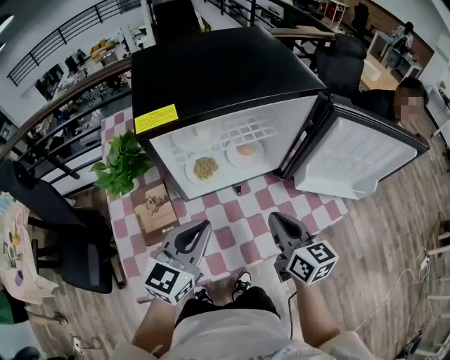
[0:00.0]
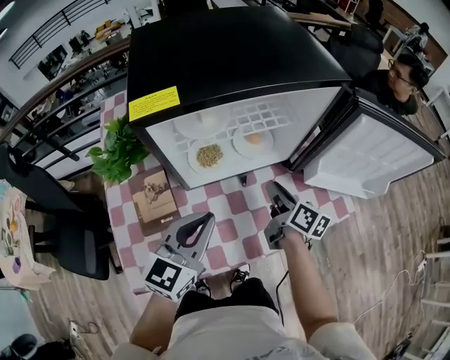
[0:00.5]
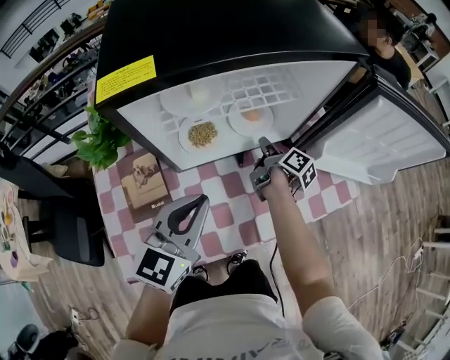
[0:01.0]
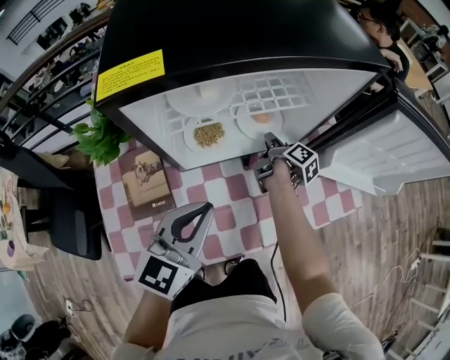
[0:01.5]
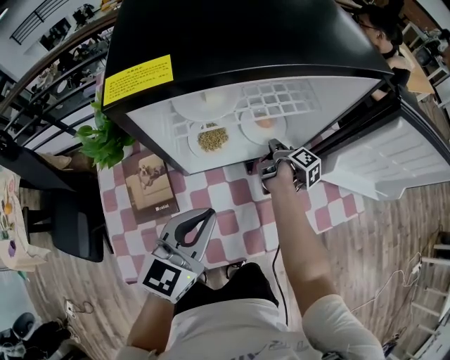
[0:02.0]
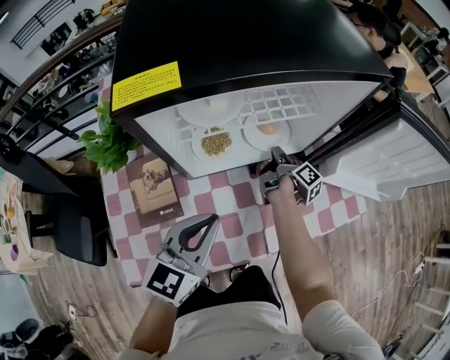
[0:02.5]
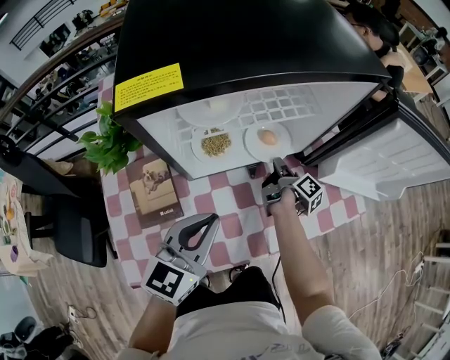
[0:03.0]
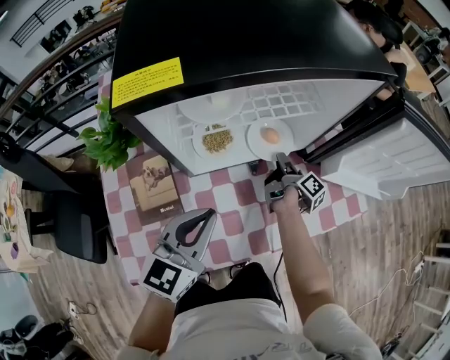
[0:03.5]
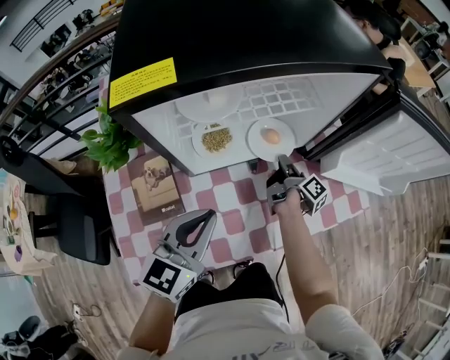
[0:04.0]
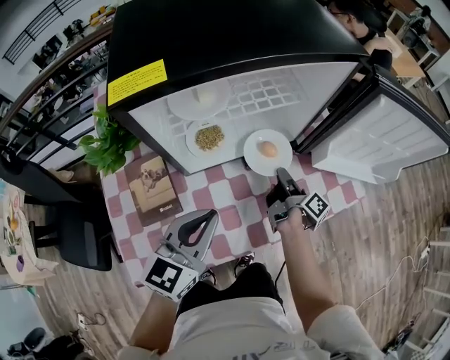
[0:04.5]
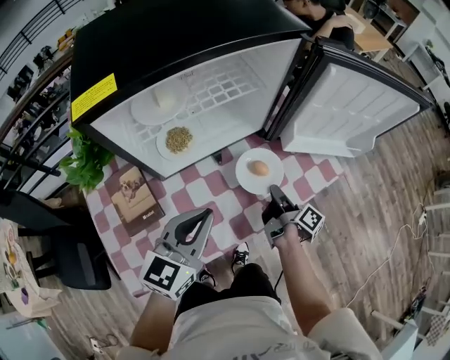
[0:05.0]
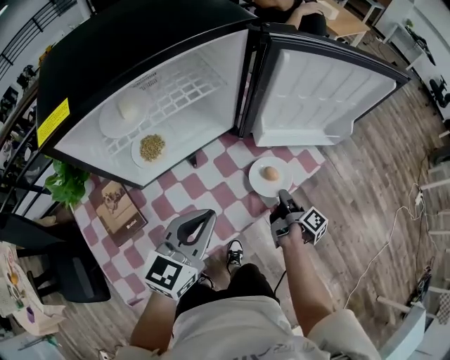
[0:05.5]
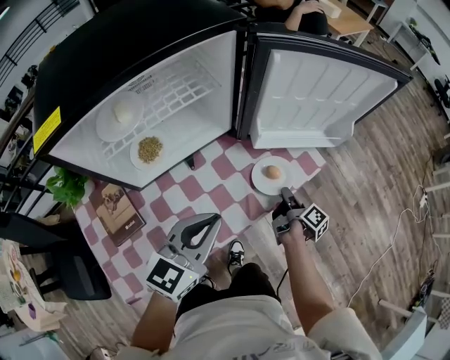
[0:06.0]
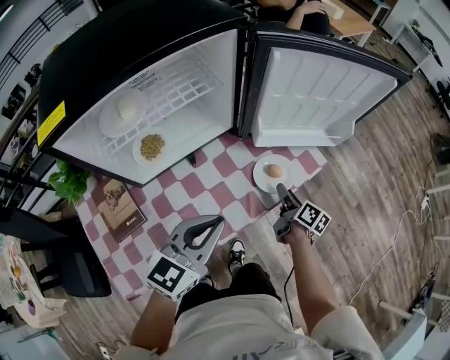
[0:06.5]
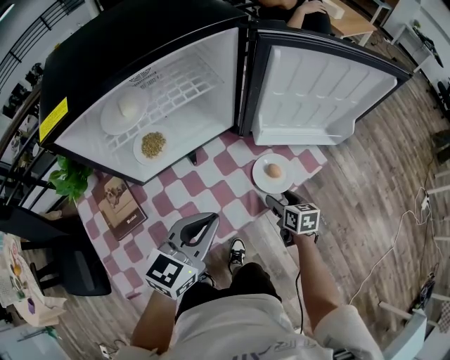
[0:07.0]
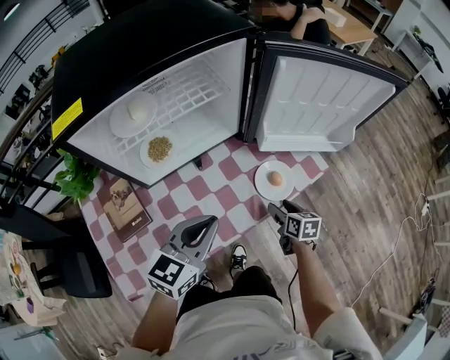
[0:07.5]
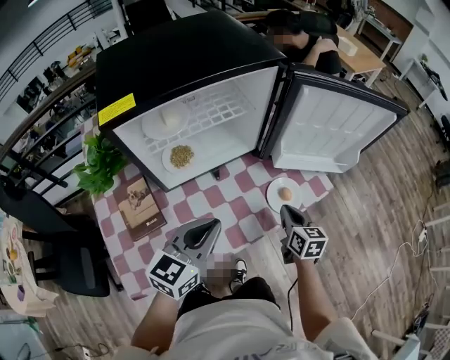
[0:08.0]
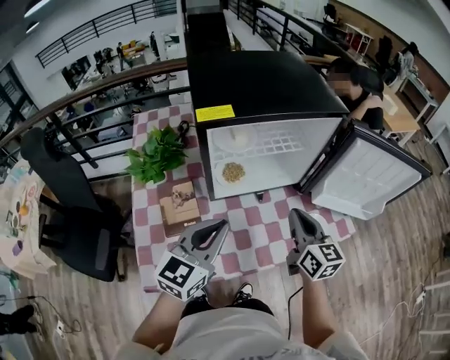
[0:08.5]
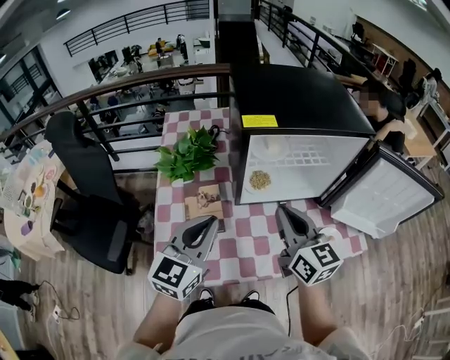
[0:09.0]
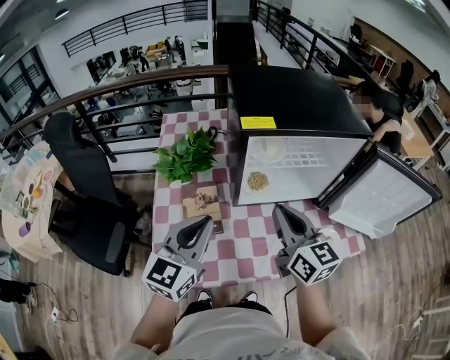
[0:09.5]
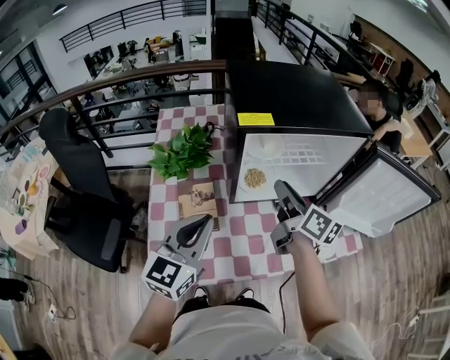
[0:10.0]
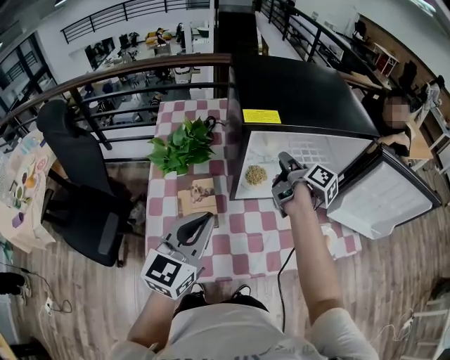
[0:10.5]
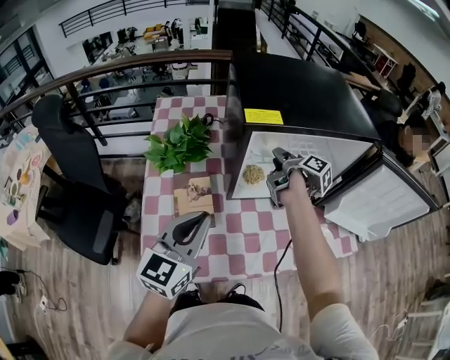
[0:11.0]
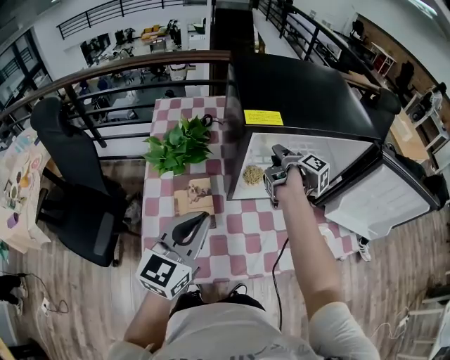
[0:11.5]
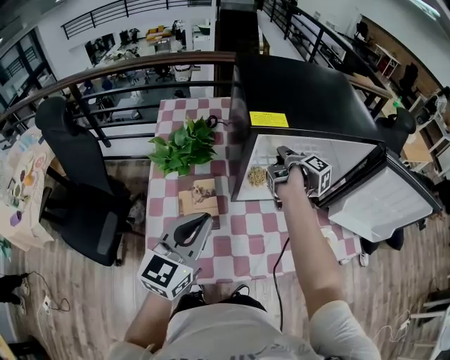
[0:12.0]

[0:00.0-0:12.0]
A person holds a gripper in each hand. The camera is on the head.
0:00.0 to 0:02.0: The left gripper changes place by about 5 cm. Meanwhile the right gripper goes approximately 30 cm forward and downward, and rolls clockwise, seen from behind, by approximately 70 degrees.
0:02.0 to 0:04.0: The right gripper goes approximately 5 cm backward.
0:04.0 to 0:06.0: The left gripper travels to the right by some 15 cm, and turns by roughly 20 degrees. Meanwhile the right gripper heads to the right and backward, covering approximately 30 cm.
0:06.0 to 0:08.0: The left gripper shifts about 5 cm to the left, while the right gripper is displaced upward and to the left by about 15 cm, twists some 70 degrees counterclockwise, seen from behind, and opens, then closes once more.
0:08.0 to 0:10.0: The left gripper moves approximately 20 cm, and turns by approximately 30 degrees, while the right gripper moves about 35 cm, and changes its angle by about 40 degrees.
0:10.0 to 0:12.0: The right gripper moves forward and downward, roughly 15 cm, and rolls clockwise, seen from behind, by roughly 40 degrees.

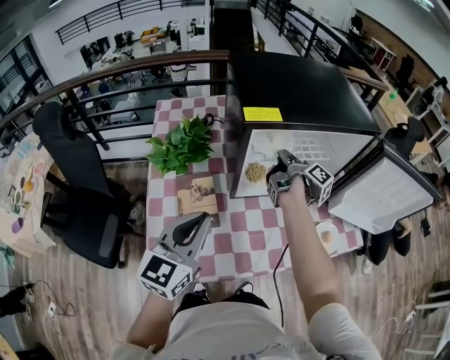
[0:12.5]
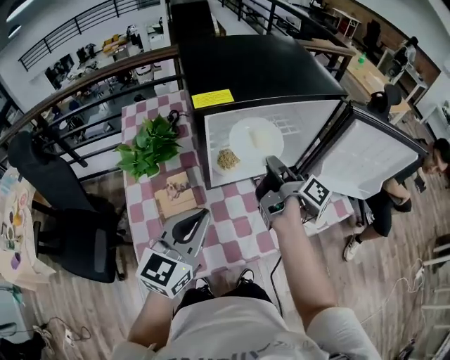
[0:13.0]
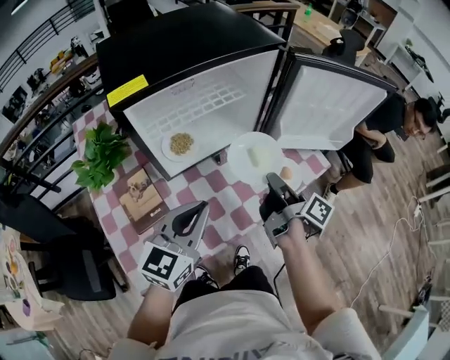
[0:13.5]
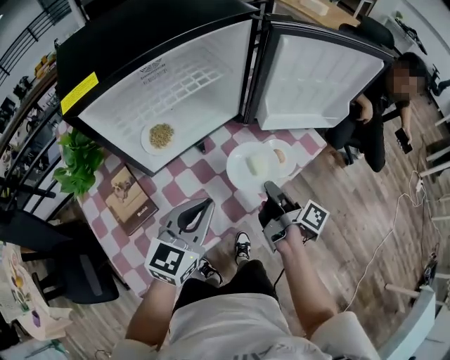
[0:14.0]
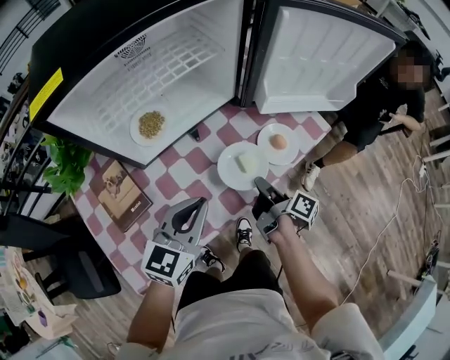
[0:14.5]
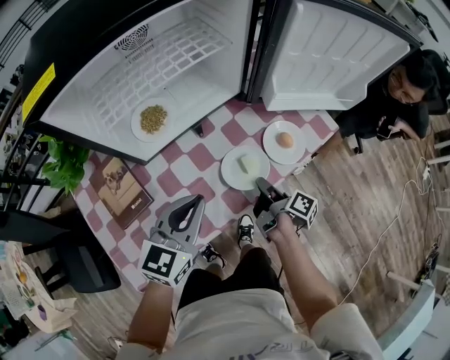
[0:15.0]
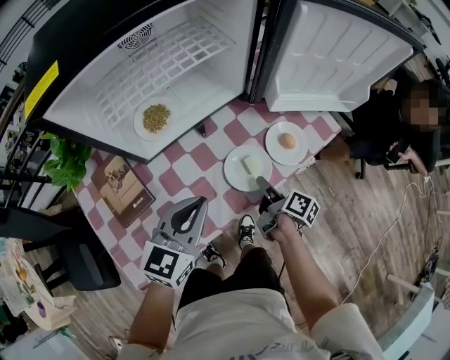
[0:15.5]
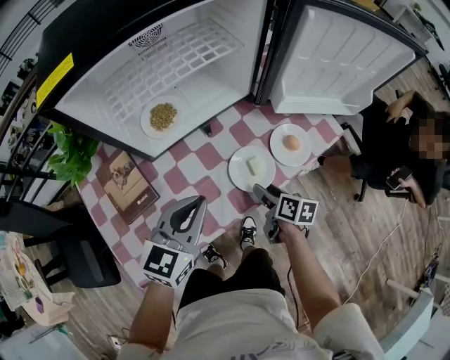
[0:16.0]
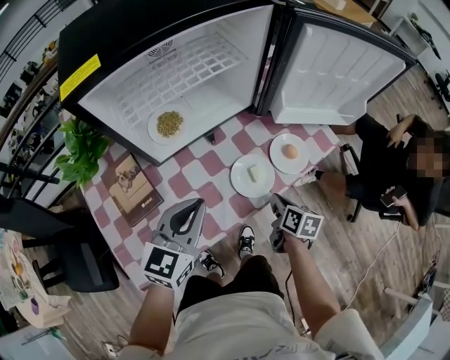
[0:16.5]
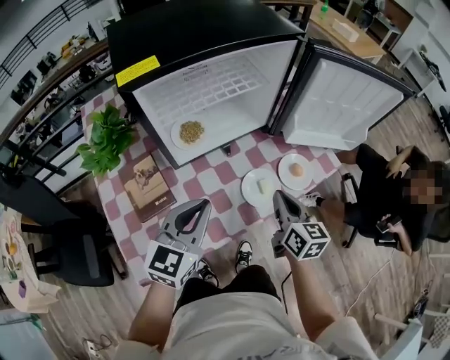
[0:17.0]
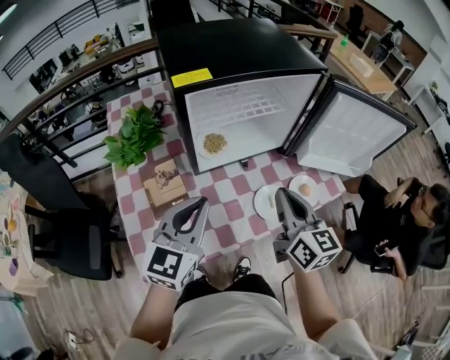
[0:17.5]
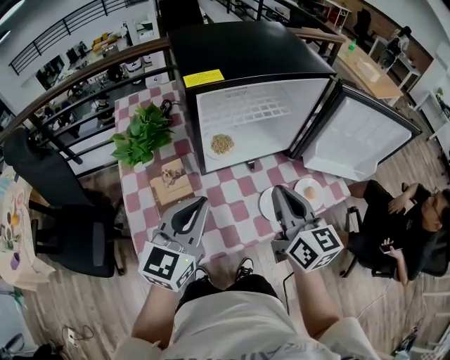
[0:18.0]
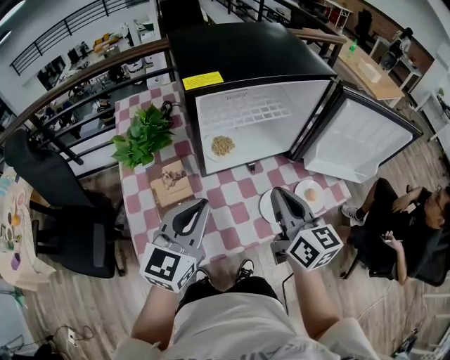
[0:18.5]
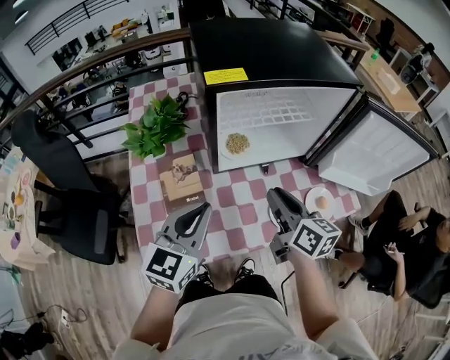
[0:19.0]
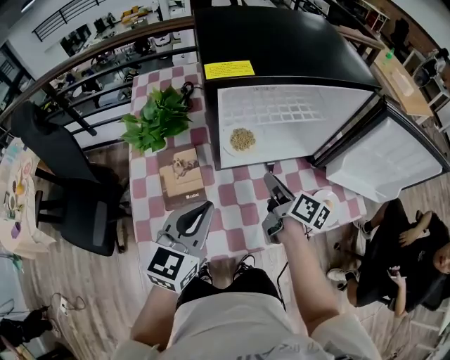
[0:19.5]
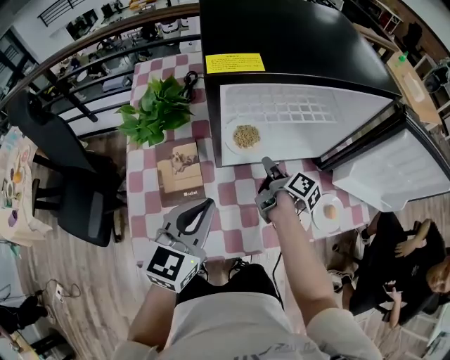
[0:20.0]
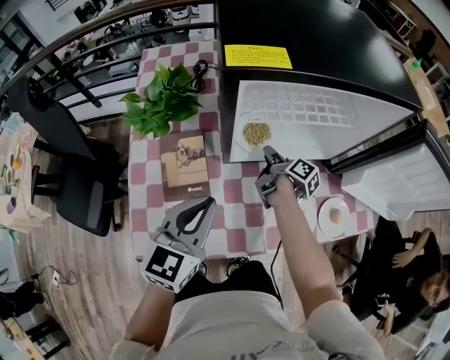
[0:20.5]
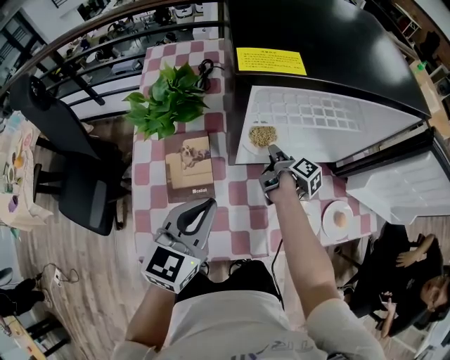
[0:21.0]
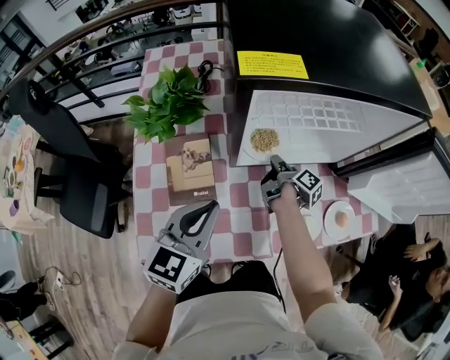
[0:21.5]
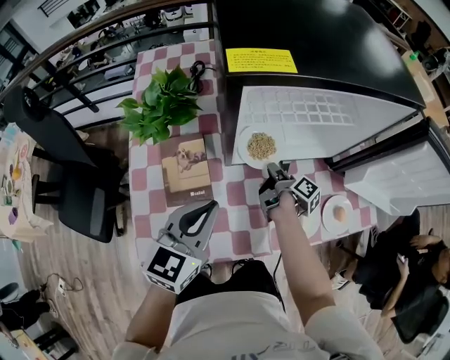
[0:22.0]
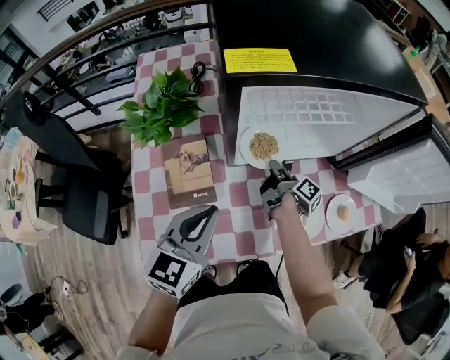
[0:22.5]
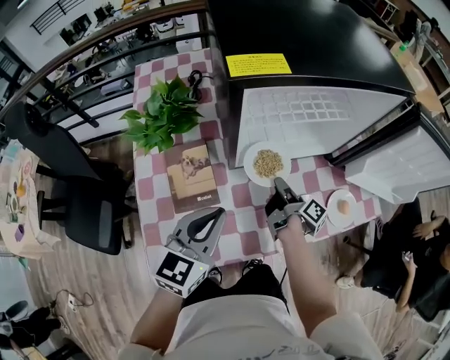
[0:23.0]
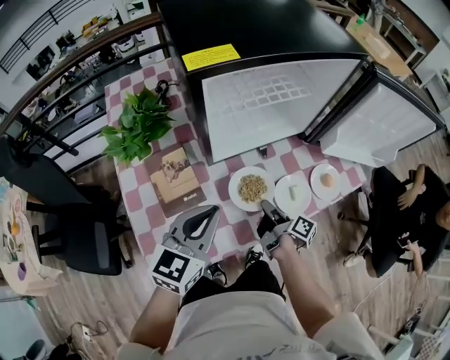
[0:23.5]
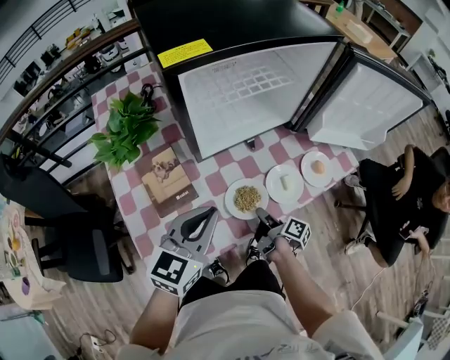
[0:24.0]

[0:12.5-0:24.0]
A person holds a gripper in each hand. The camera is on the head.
0:12.5 to 0:14.5: The left gripper is displaced to the right and downward by some 25 cm, and turns by roughly 30 degrees; the right gripper travels to the right, backward and downward by some 40 cm.
0:14.5 to 0:16.5: The right gripper twists some 40 degrees counterclockwise, seen from behind, and opens and closes again.
0:16.5 to 0:18.5: The left gripper moves upward and to the left, about 15 cm; the right gripper is displaced upward and to the left by roughly 35 cm, and angles its fingers upward, by roughly 40 degrees.
0:18.5 to 0:20.0: The left gripper moves downward, some 5 cm; the right gripper moves downward and forward, roughly 30 cm, rolls clockwise, seen from behind, by about 50 degrees, and opens up.
0:20.0 to 0:22.0: The right gripper heads downward, covering about 5 cm, and closes its fingers.
0:22.0 to 0:24.0: The right gripper moves backward, some 20 cm. The left gripper is displaced backward by approximately 5 cm.

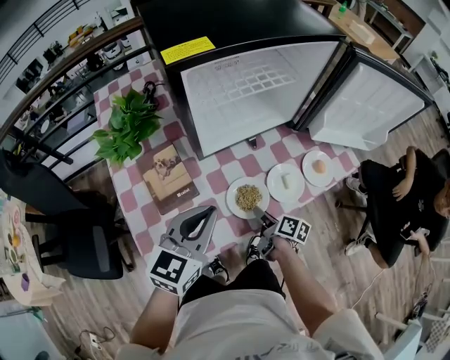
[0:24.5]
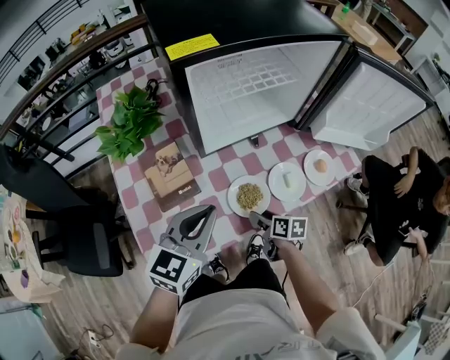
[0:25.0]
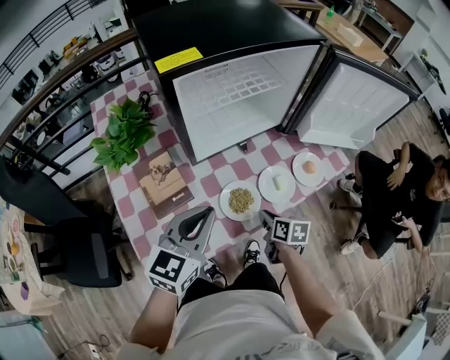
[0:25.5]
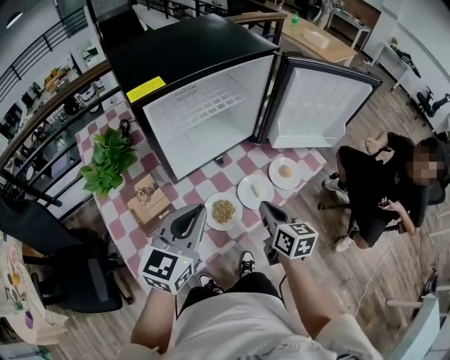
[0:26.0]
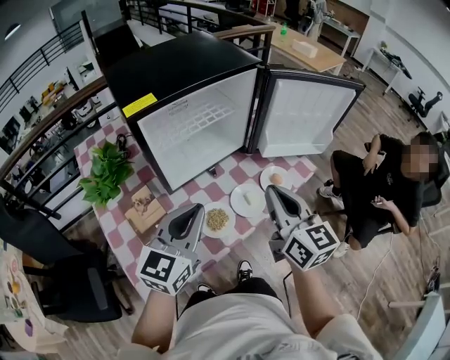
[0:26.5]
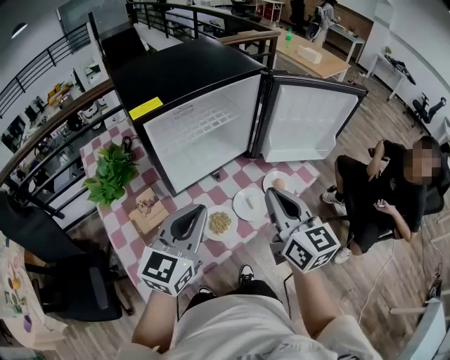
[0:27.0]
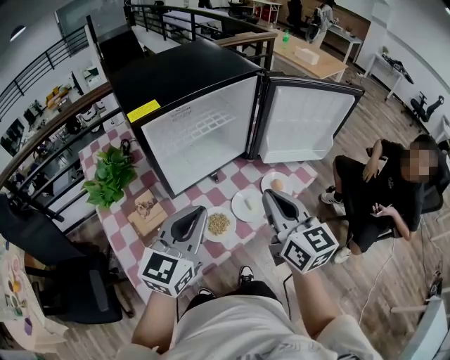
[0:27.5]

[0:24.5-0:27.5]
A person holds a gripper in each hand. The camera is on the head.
0:24.5 to 0:26.0: The left gripper shifts approximately 5 cm upward; the right gripper goes roughly 20 cm upward, changes its angle by about 40 degrees, and closes.
0:26.0 to 0:27.5: The left gripper goes approximately 5 cm upward. Meanwhile the right gripper moves upward, roughly 20 cm, and rotates about 20 degrees.
